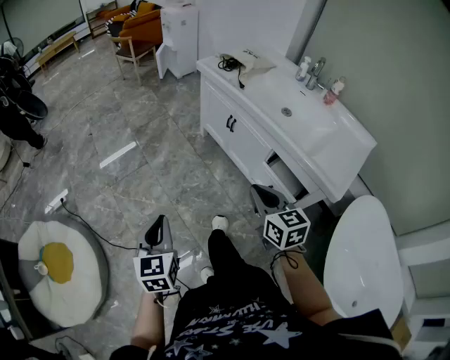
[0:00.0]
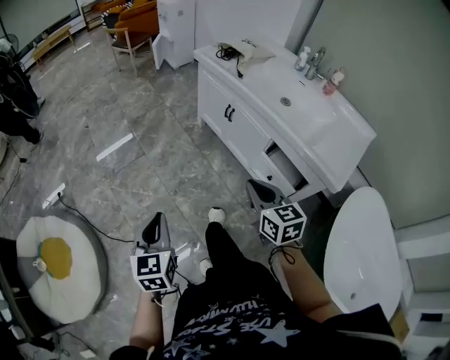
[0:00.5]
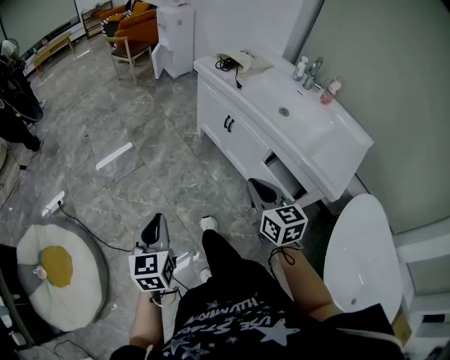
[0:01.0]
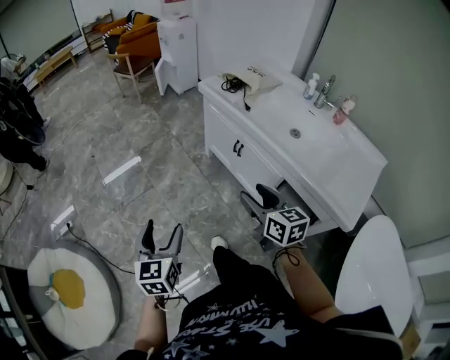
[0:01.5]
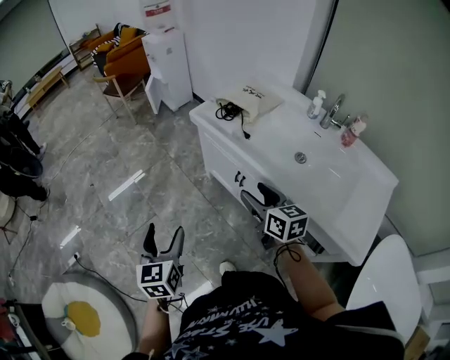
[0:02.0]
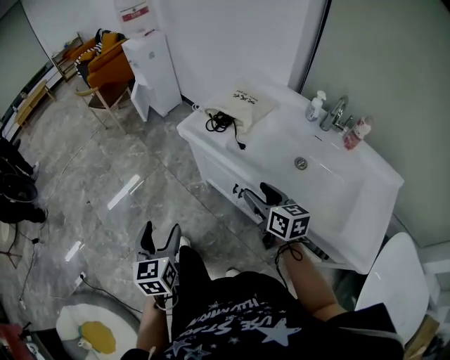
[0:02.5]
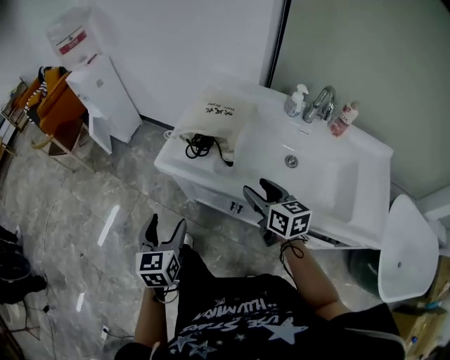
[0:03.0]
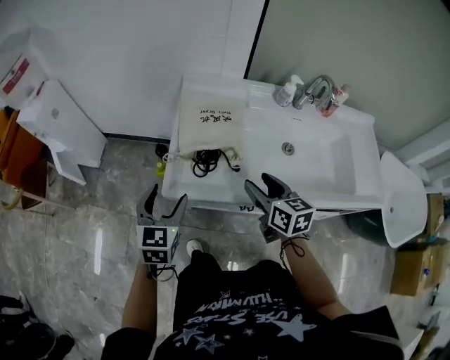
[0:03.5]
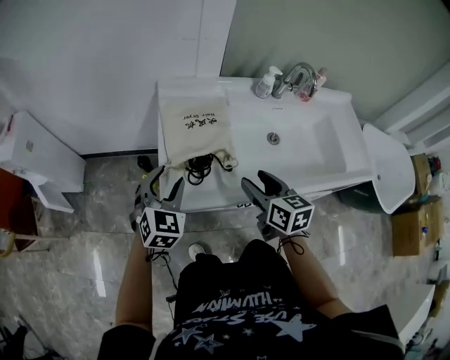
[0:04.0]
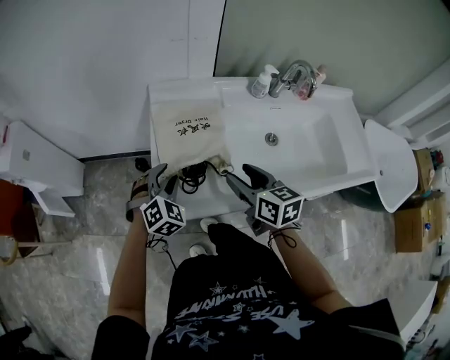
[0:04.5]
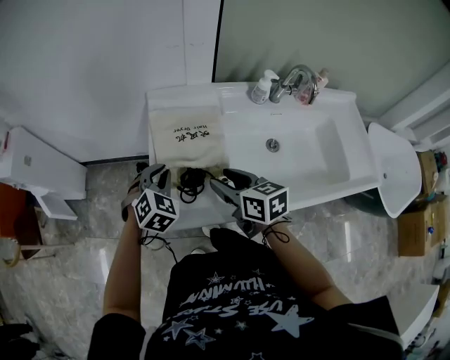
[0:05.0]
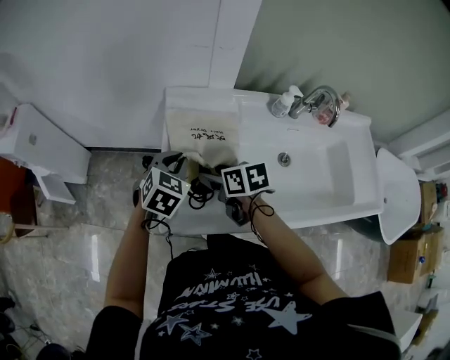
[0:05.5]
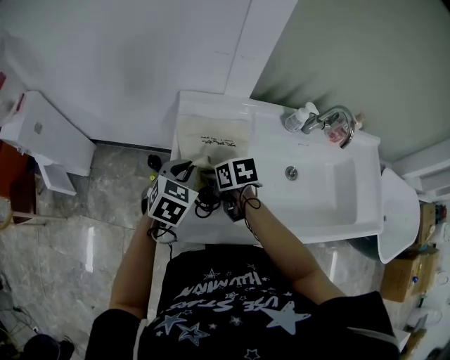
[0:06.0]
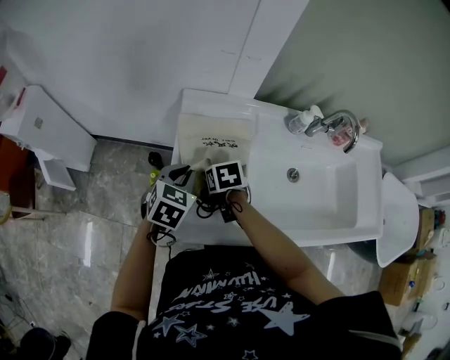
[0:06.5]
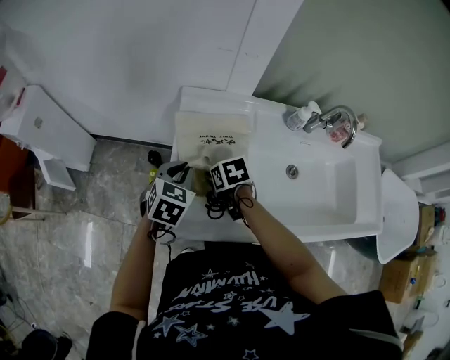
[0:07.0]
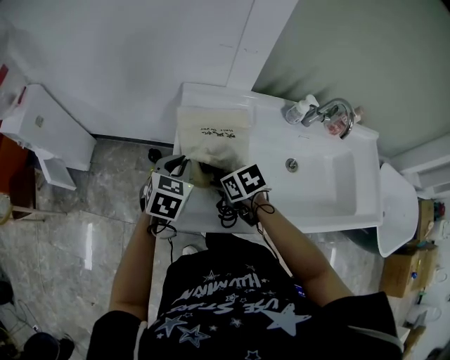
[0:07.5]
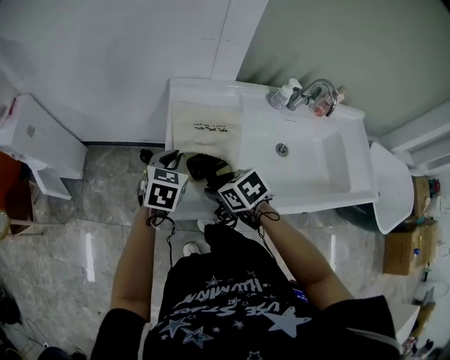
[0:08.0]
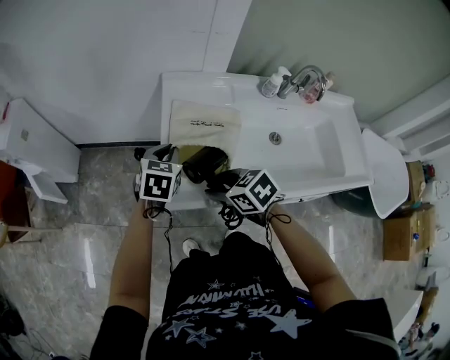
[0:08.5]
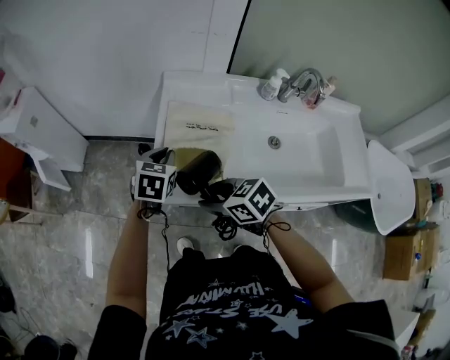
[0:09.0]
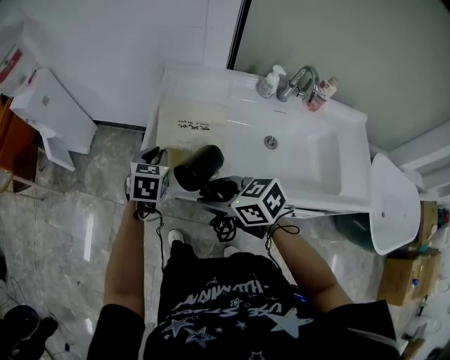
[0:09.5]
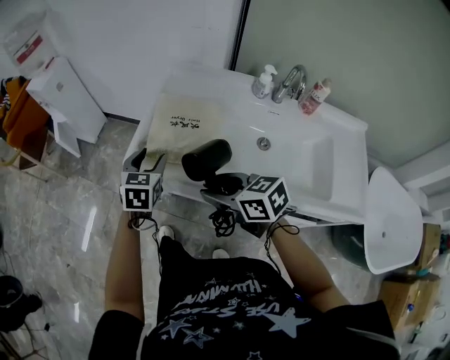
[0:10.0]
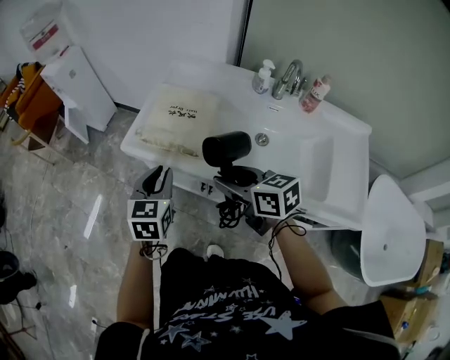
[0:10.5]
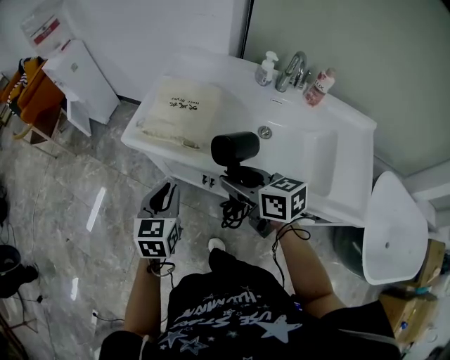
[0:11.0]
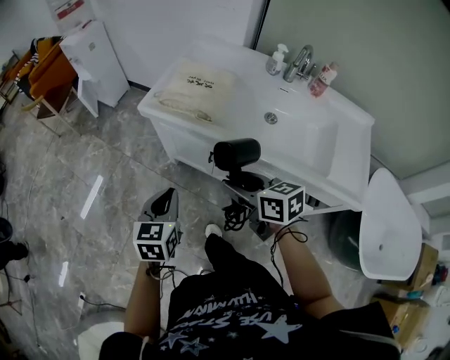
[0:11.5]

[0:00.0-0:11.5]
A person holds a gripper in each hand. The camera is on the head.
0:00.0 to 0:02.0: The two grippers go some 35 cm forward. The left gripper opens. Meanwhile the right gripper opens its fingers.
0:02.0 to 0:04.0: The right gripper ends up some 30 cm from where it was, and rotates some 50 degrees. Meanwhile the left gripper moves roughly 60 cm, and turns by about 80 degrees.
0:04.0 to 0:06.0: The left gripper travels forward by approximately 15 cm, turns by about 20 degrees, and closes; the right gripper travels forward, to the left and downward by some 25 cm, and changes its angle by about 40 degrees.
0:06.0 to 0:07.5: The right gripper travels backward by about 5 cm.
0:07.5 to 0:09.5: The right gripper is displaced backward and upward by roughly 25 cm, and changes its angle by approximately 30 degrees. Meanwhile the left gripper moves backward, about 10 cm.
0:09.5 to 0:11.5: The right gripper shifts some 20 cm backward. The left gripper shifts about 40 cm backward, turns by some 20 degrees, and opens, then closes again.

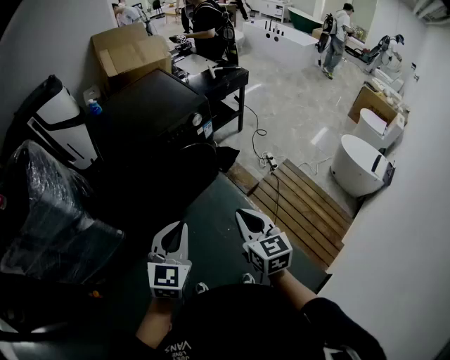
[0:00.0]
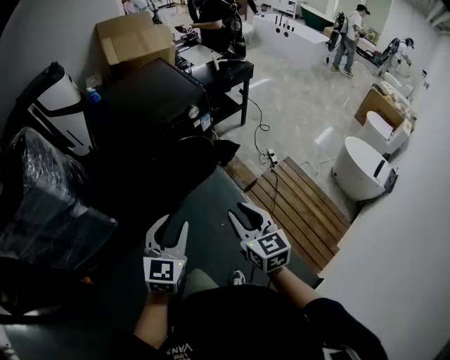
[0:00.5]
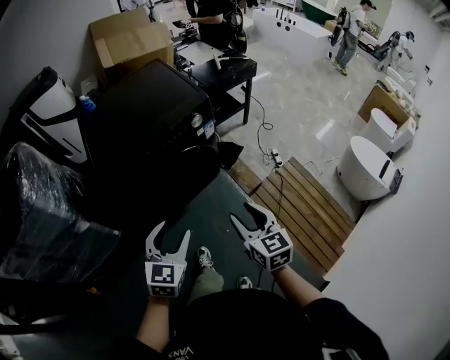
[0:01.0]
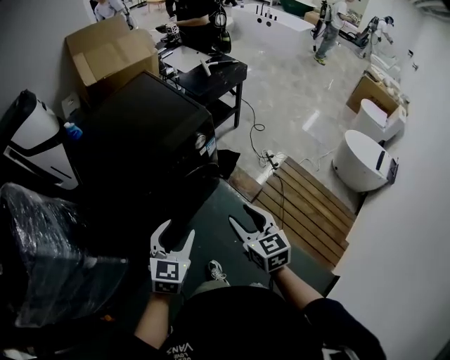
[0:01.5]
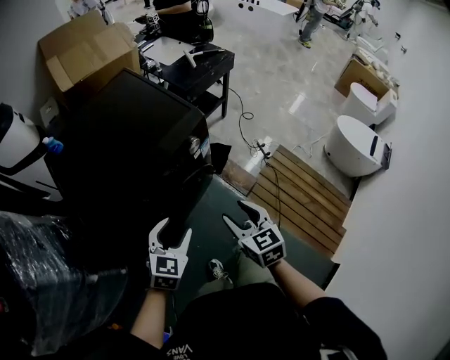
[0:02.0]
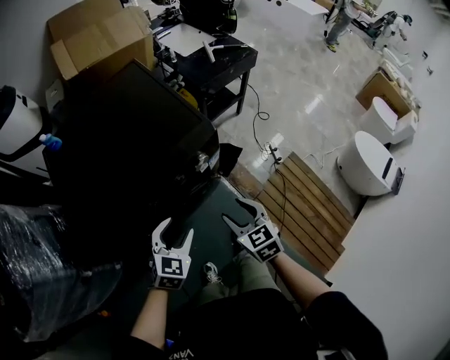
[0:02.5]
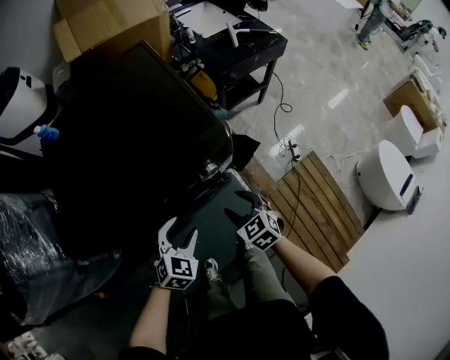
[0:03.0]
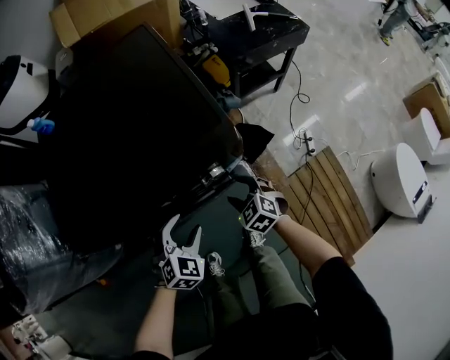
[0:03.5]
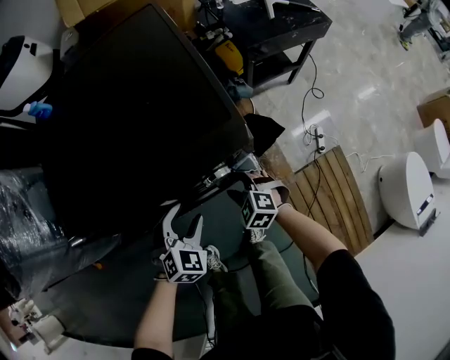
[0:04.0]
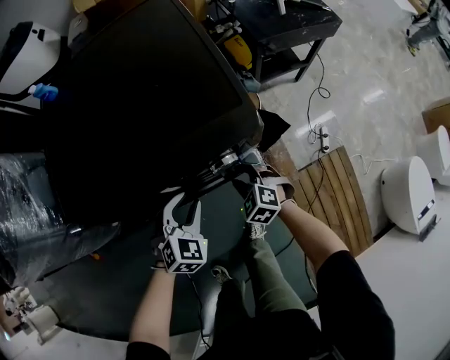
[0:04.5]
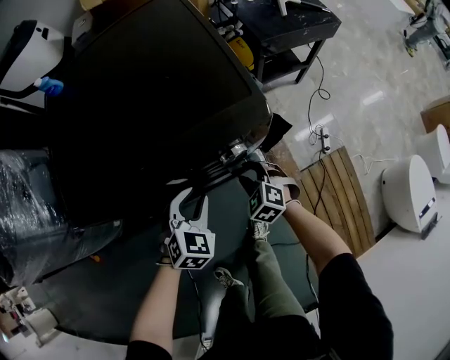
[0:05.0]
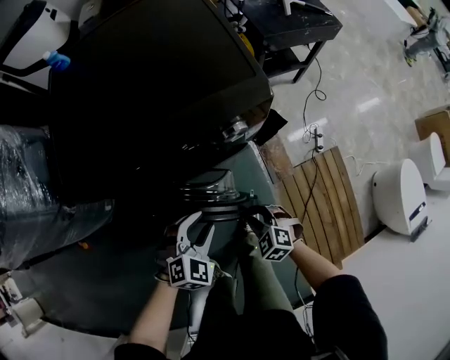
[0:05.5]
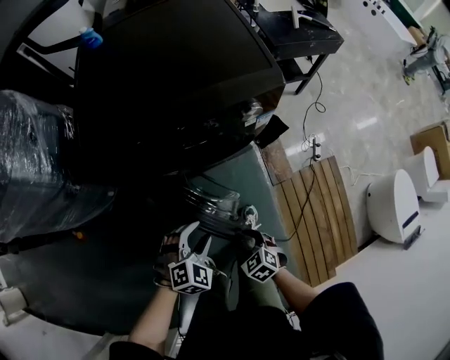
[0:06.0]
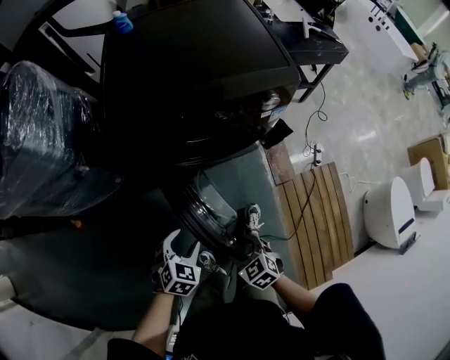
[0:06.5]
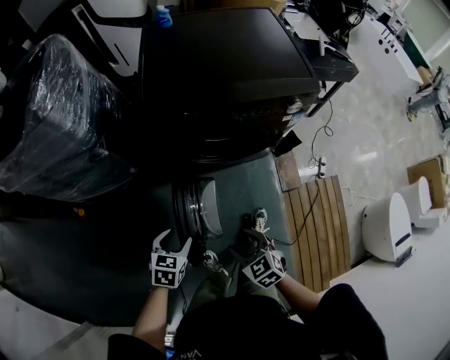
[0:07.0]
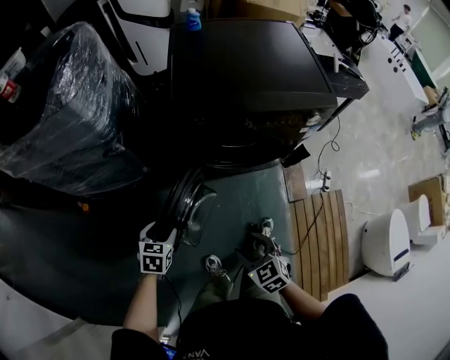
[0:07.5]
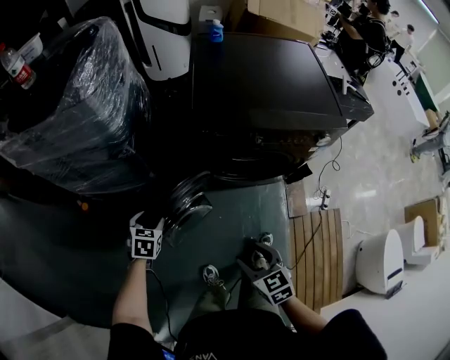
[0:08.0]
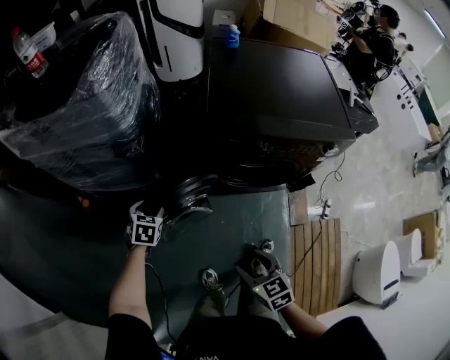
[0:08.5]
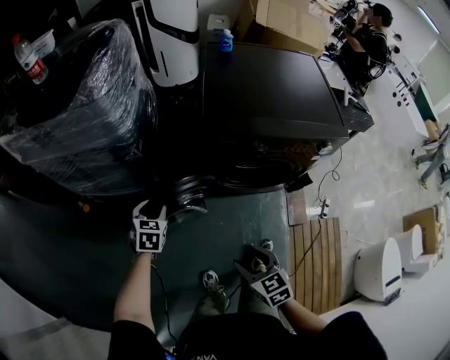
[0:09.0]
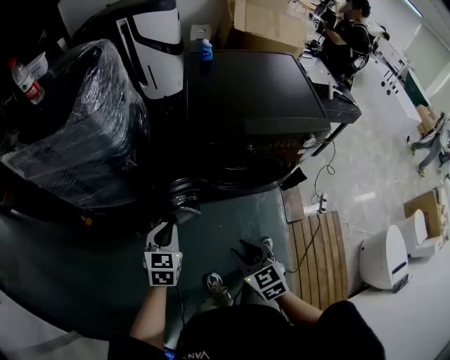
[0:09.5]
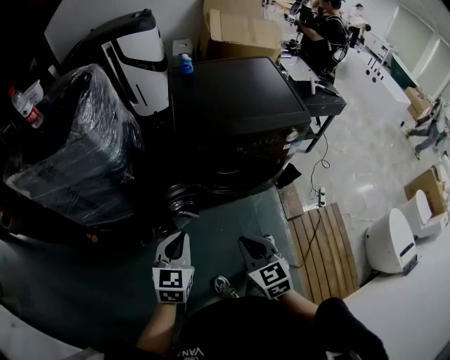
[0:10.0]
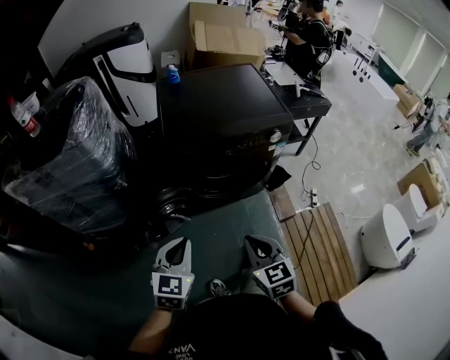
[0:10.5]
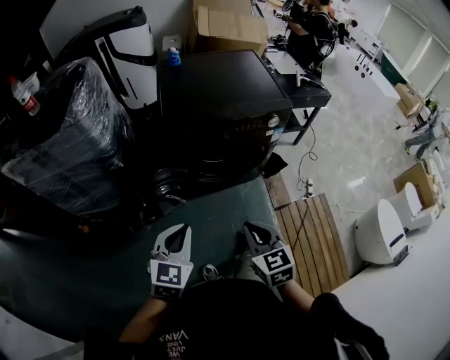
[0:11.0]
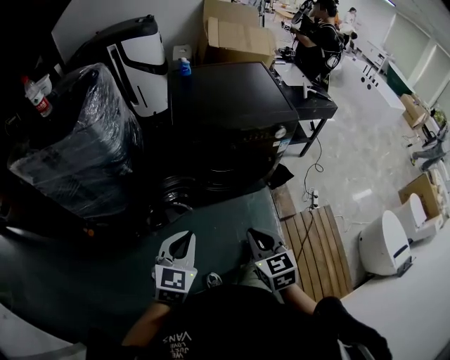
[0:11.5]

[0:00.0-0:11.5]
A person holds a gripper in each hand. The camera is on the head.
0:00.0 to 0:02.0: The left gripper moves forward and downward, about 30 cm, changes its angle by about 20 degrees, and opens, while the right gripper travels forward by about 25 cm, and opens.
0:02.0 to 0:04.0: The right gripper goes some 25 cm downward, and rotates some 70 degrees; the left gripper ends up roughly 25 cm from where it was, and turns by approximately 30 degrees.
0:04.0 to 0:06.0: The right gripper shifts some 30 cm backward, changes its angle by roughly 20 degrees, and closes, then reopens. Meanwhile the left gripper travels backward and to the left by roughly 25 cm.
0:06.0 to 0:07.5: The left gripper heads to the left, covering about 35 cm, and rolls counterclockwise, seen from behind, by some 60 degrees. The right gripper is displaced to the left and upward by approximately 20 cm.
0:07.5 to 0:09.5: Both grippers travel together upward, roughly 10 cm. The left gripper turns by some 20 degrees, and closes its fingers, while the right gripper closes its fingers.
0:09.5 to 0:11.5: The left gripper moves backward, upward and to the right, some 20 cm; the right gripper goes approximately 15 cm upward, to the right and backward, and closes up.

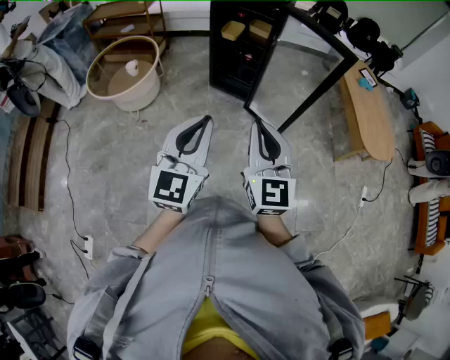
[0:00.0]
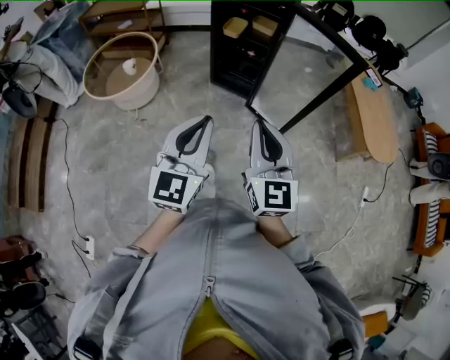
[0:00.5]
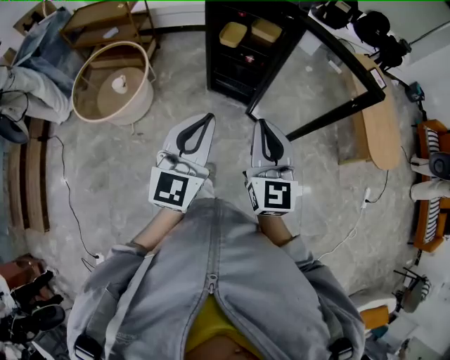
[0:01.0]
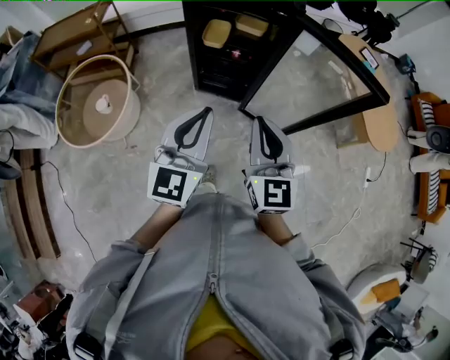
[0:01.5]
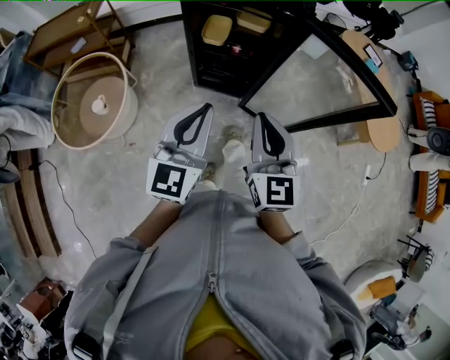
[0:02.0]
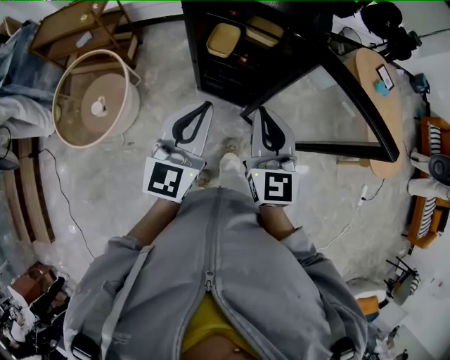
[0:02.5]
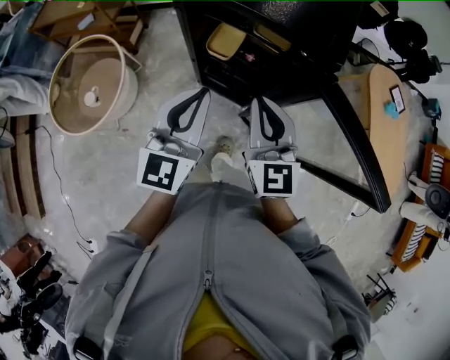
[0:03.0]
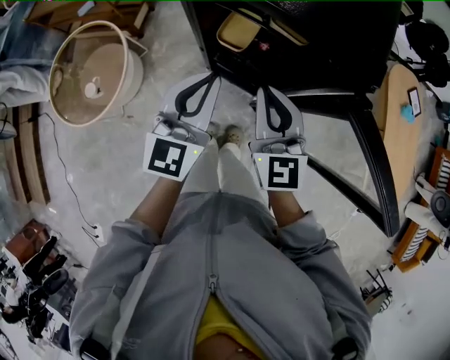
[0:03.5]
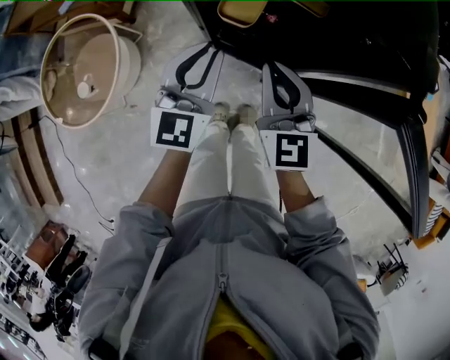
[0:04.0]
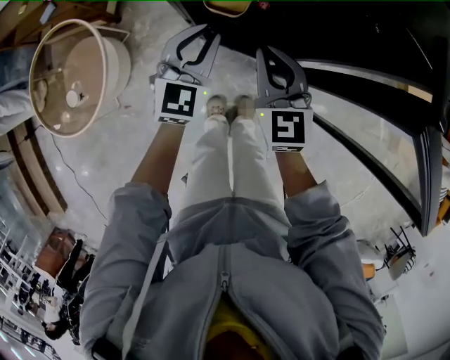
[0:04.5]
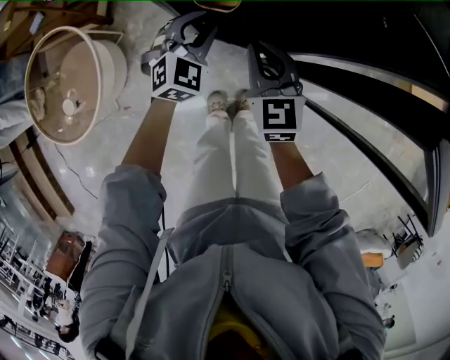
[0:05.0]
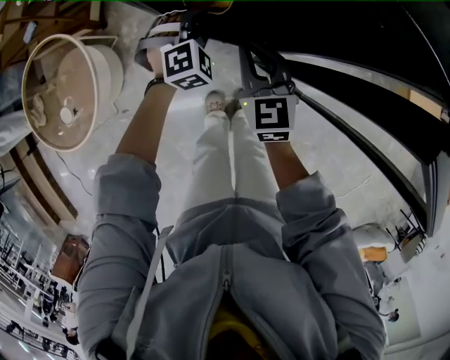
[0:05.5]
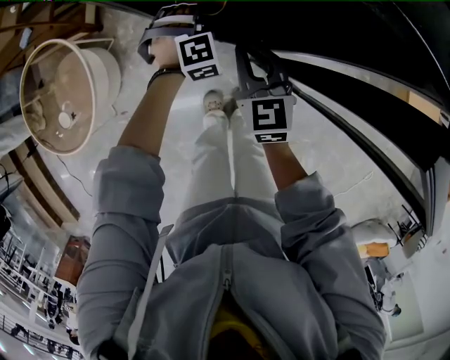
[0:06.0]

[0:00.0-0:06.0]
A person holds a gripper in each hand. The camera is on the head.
0:00.0 to 0:02.0: Both grippers move forward, some 35 cm.
0:02.0 to 0:04.0: Both grippers move forward and downward, roughly 35 cm.
0:04.0 to 0:06.0: The right gripper heads downward, covering some 15 cm. Meanwhile the left gripper goes some 25 cm downward and forward, rotates around the line of its fingers by about 60 degrees, clockwise from behind, and opens.
